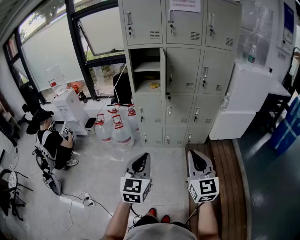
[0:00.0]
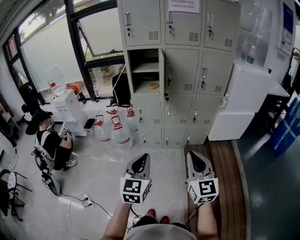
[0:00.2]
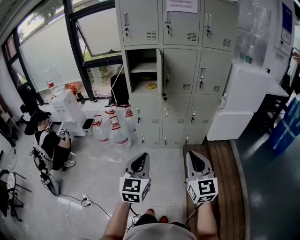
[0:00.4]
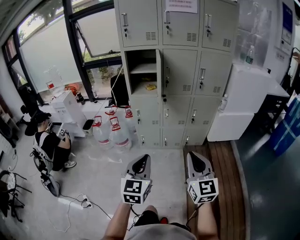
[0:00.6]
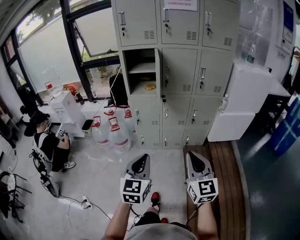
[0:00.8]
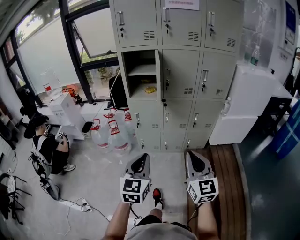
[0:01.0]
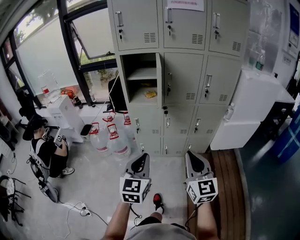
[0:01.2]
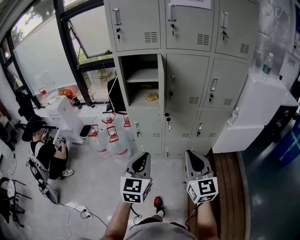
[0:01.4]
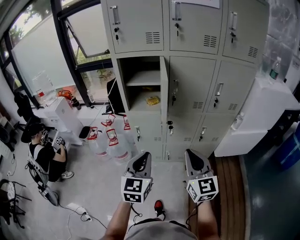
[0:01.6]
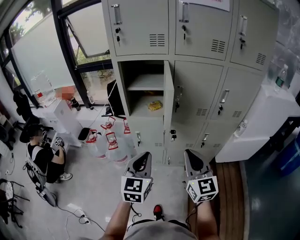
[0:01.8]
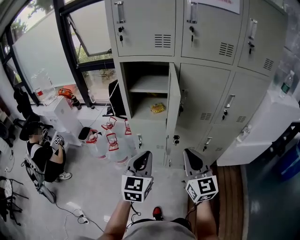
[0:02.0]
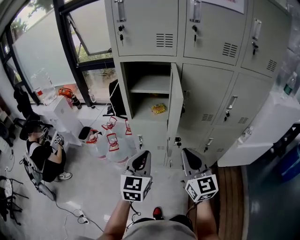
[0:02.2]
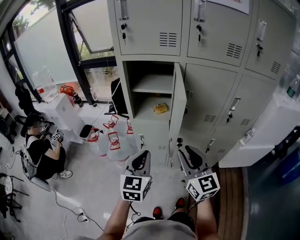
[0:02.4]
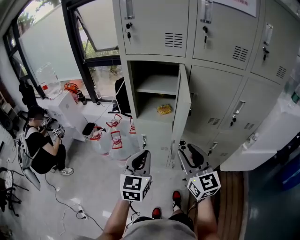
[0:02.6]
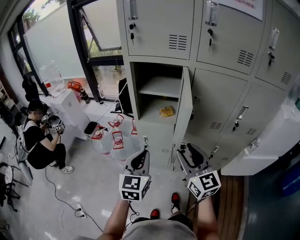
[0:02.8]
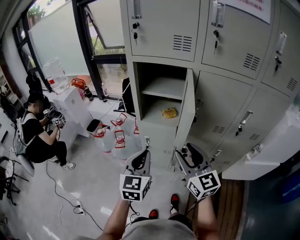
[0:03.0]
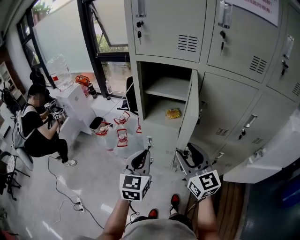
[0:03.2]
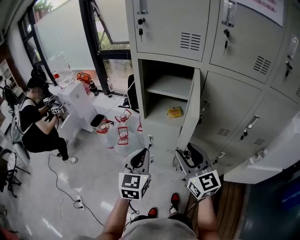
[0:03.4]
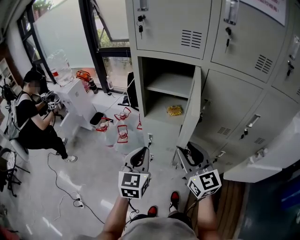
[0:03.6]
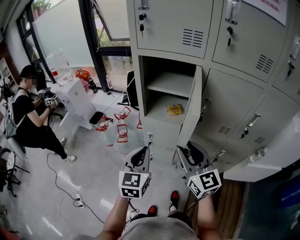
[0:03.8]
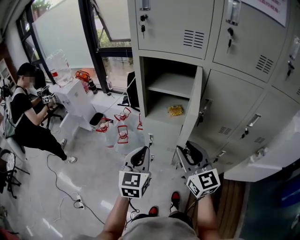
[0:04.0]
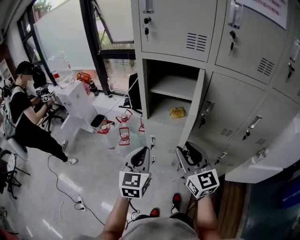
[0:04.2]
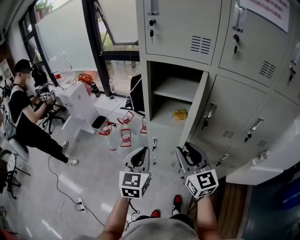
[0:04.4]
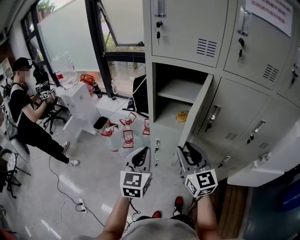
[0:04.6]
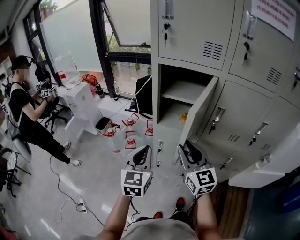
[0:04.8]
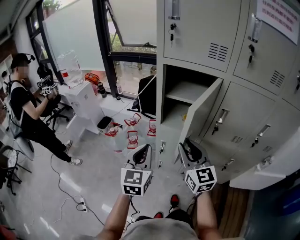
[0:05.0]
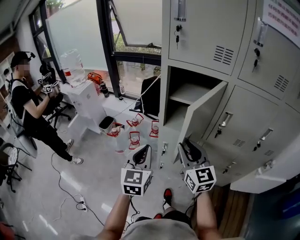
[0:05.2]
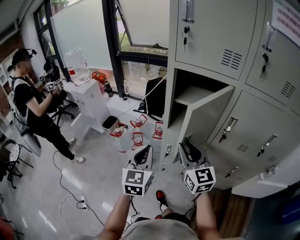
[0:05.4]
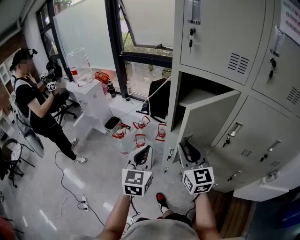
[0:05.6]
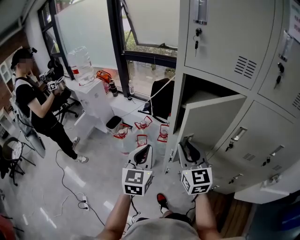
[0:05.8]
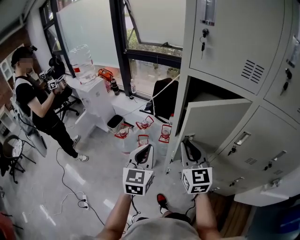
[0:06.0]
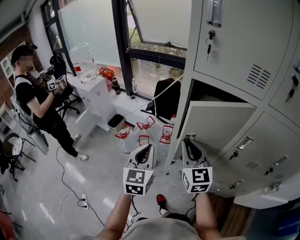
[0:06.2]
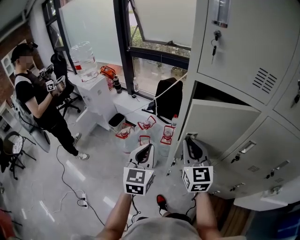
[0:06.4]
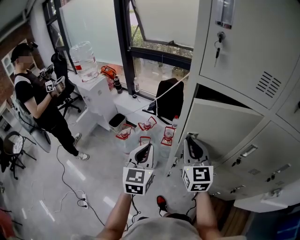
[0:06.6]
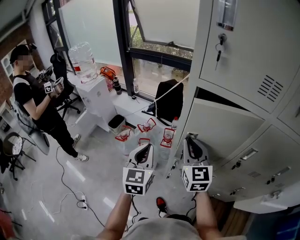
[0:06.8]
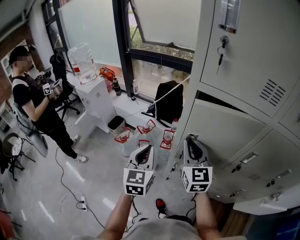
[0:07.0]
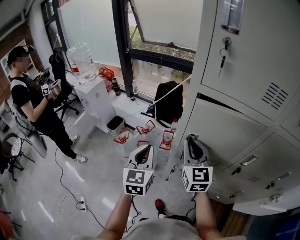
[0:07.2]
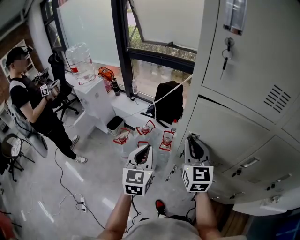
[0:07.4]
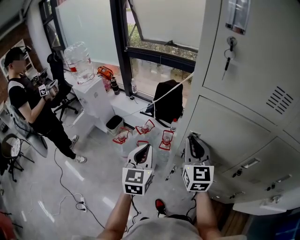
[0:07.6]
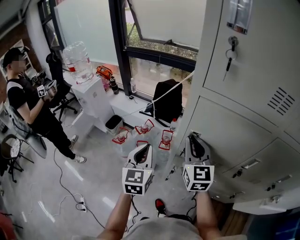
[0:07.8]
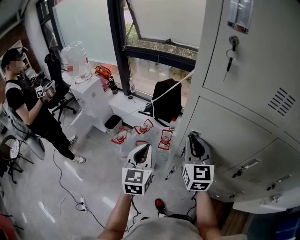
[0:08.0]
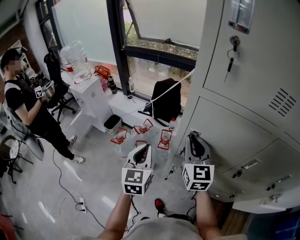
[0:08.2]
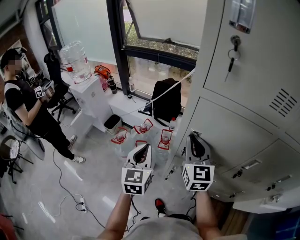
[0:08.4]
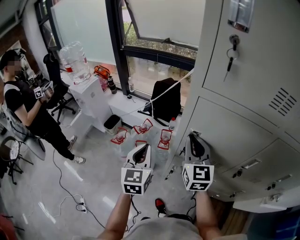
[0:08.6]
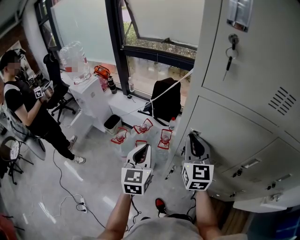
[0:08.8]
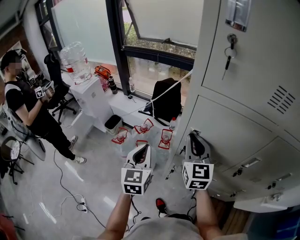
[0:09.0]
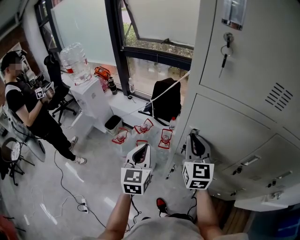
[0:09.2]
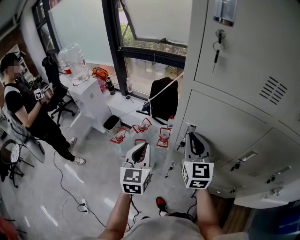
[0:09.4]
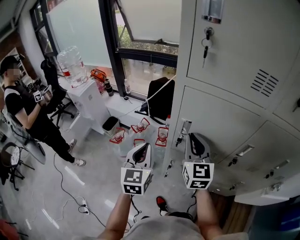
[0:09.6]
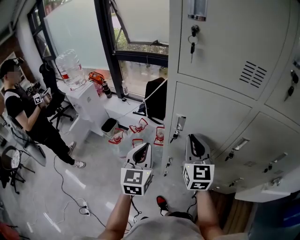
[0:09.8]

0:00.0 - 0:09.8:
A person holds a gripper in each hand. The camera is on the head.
0:00.0 - 0:01.4: Both grippers travel together forward, about 20 cm.
0:01.4 - 0:02.8: Both grippers move forward, roughly 20 cm. The right gripper opens its fingers.
0:02.8 - 0:04.2: The right gripper moves forward, roughly 5 cm.
0:04.2 - 0:05.6: Both grippers move to the left and forward, roughly 15 cm.
0:05.6 - 0:07.0: Both grippers move forward, approximately 15 cm.
0:07.0 - 0:08.4: The left gripper changes place by approximately 5 cm.
0:08.4 - 0:09.8: Both grippers move backward, approximately 5 cm.

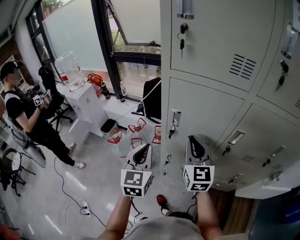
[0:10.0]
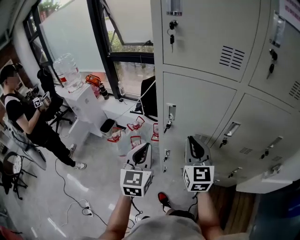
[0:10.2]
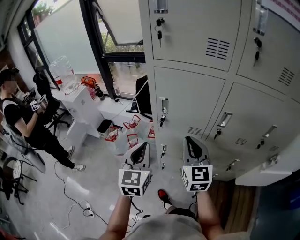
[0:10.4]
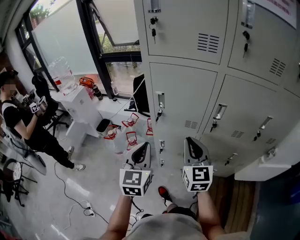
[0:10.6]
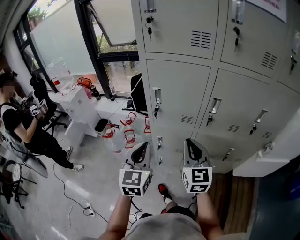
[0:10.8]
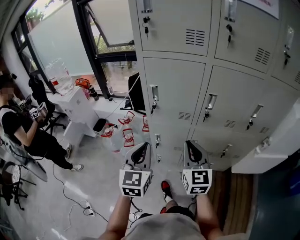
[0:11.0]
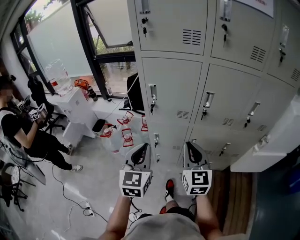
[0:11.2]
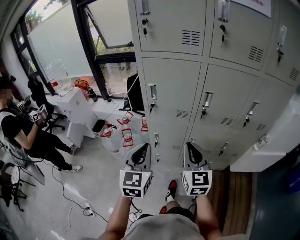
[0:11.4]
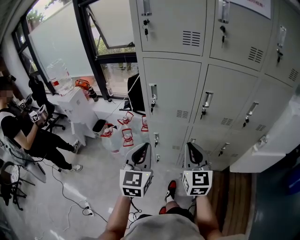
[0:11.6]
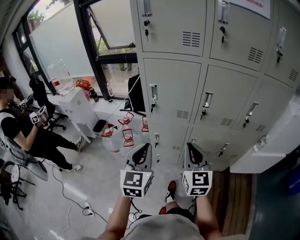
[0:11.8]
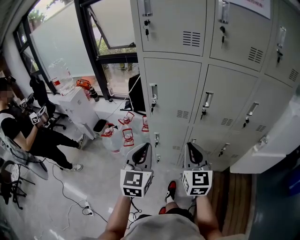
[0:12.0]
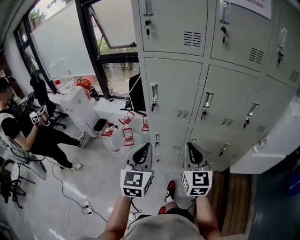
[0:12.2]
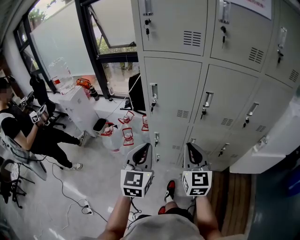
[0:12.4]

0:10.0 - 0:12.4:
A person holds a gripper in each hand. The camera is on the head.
0:10.0 - 0:11.2: The right gripper moves backward, some 20 cm. Meanwhile the left gripper travels backward and to the right by approximately 15 cm.
0:11.2 - 0:12.4: The grippers make only small movements.

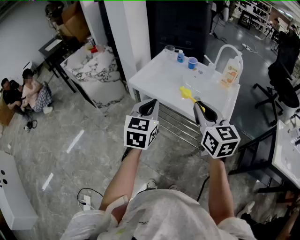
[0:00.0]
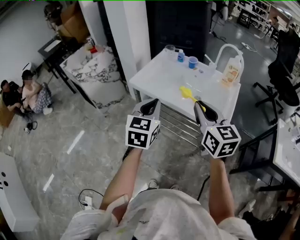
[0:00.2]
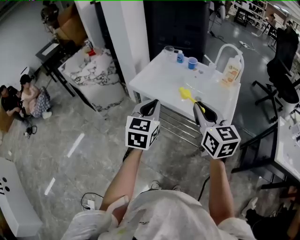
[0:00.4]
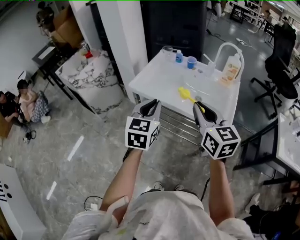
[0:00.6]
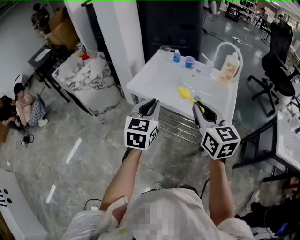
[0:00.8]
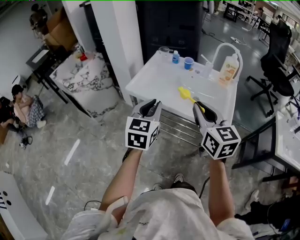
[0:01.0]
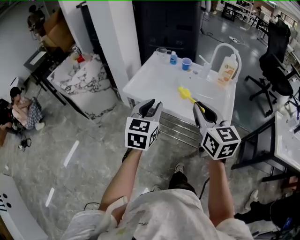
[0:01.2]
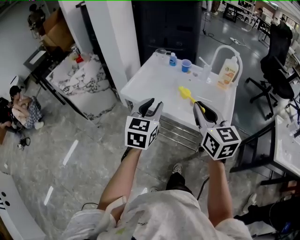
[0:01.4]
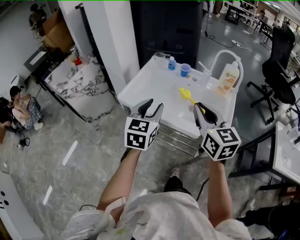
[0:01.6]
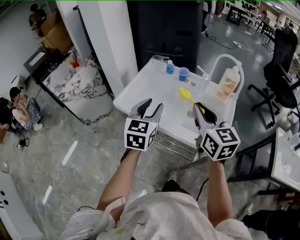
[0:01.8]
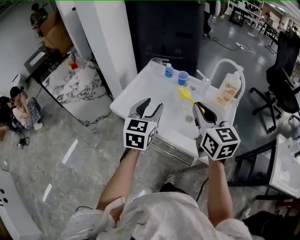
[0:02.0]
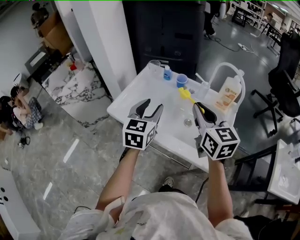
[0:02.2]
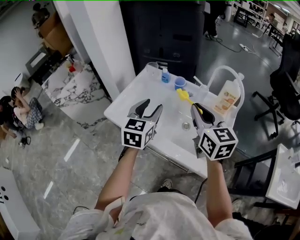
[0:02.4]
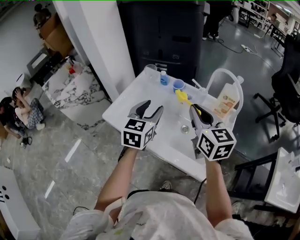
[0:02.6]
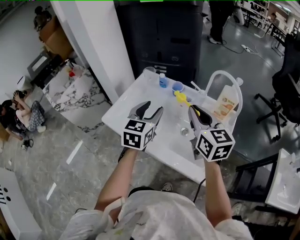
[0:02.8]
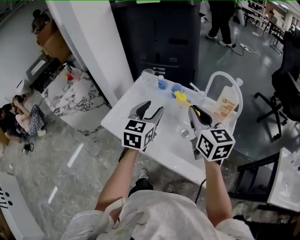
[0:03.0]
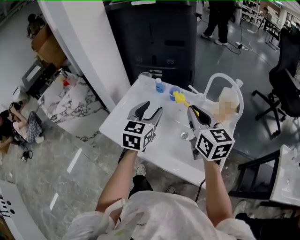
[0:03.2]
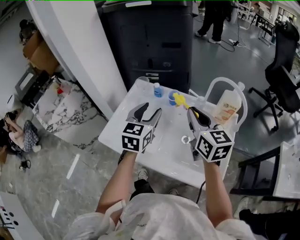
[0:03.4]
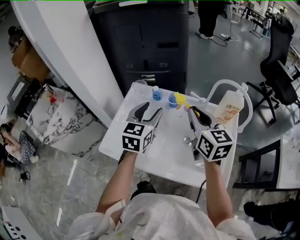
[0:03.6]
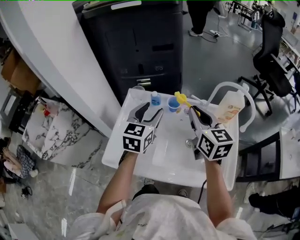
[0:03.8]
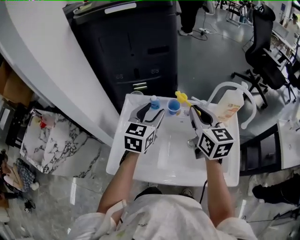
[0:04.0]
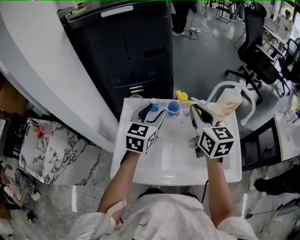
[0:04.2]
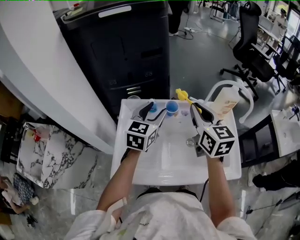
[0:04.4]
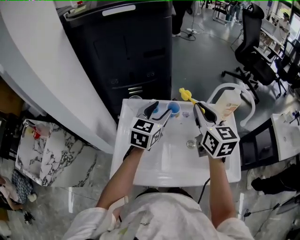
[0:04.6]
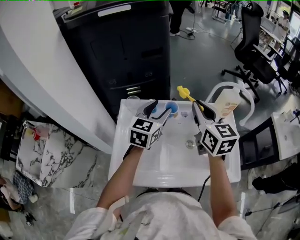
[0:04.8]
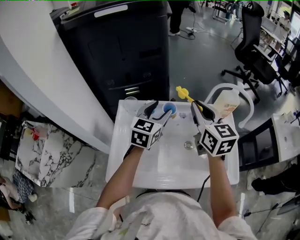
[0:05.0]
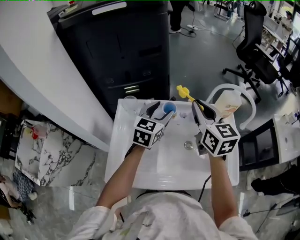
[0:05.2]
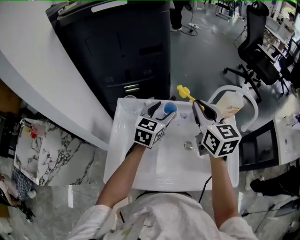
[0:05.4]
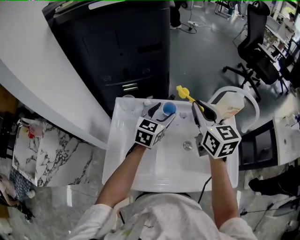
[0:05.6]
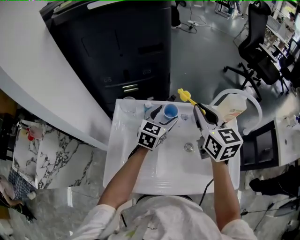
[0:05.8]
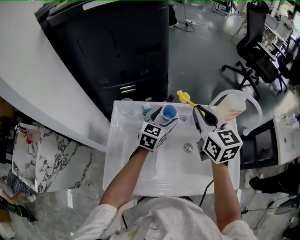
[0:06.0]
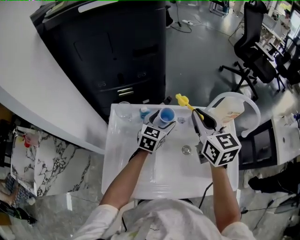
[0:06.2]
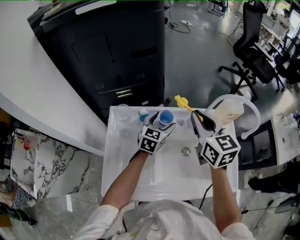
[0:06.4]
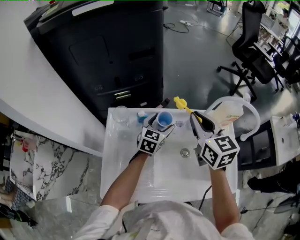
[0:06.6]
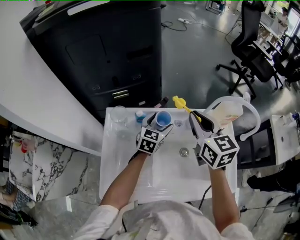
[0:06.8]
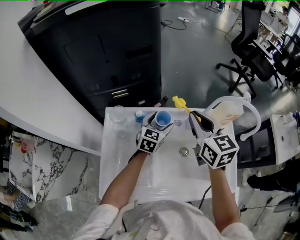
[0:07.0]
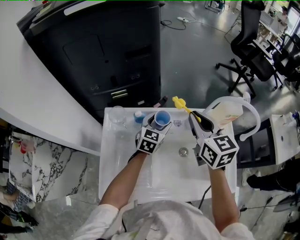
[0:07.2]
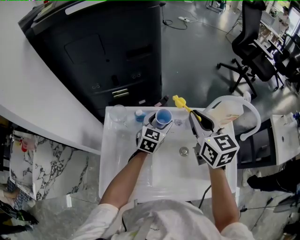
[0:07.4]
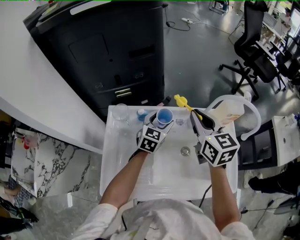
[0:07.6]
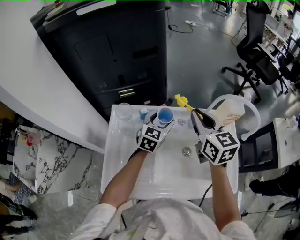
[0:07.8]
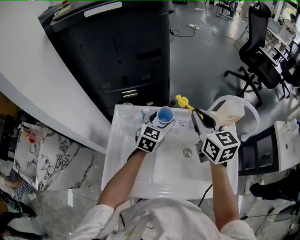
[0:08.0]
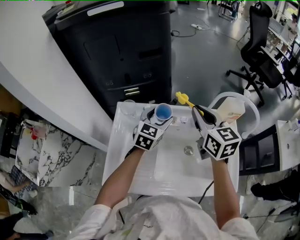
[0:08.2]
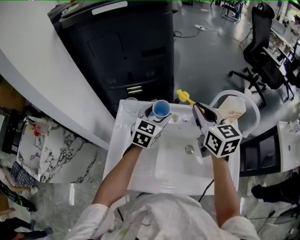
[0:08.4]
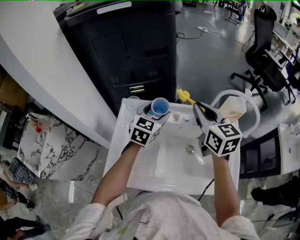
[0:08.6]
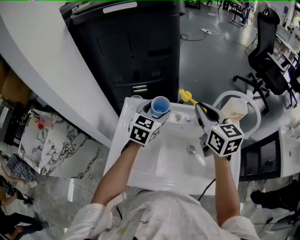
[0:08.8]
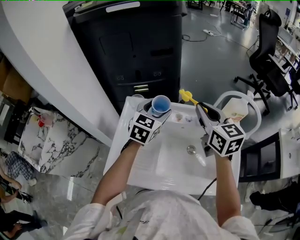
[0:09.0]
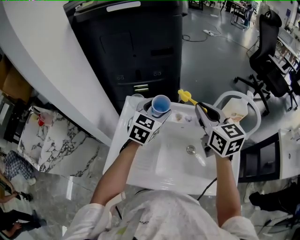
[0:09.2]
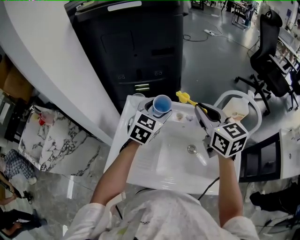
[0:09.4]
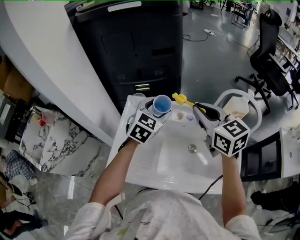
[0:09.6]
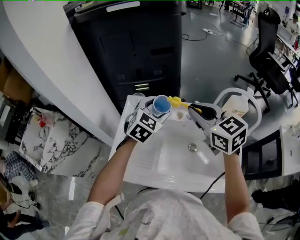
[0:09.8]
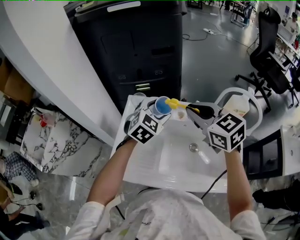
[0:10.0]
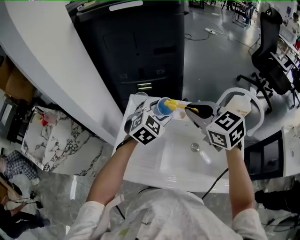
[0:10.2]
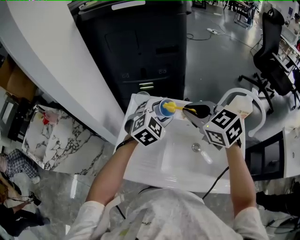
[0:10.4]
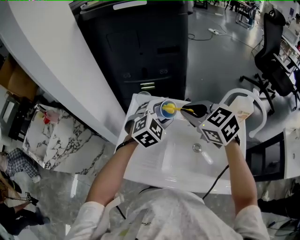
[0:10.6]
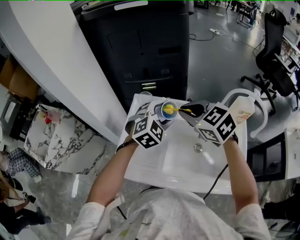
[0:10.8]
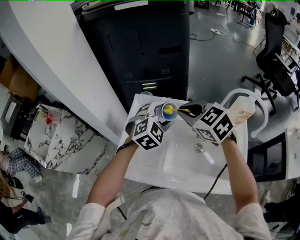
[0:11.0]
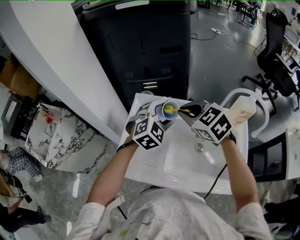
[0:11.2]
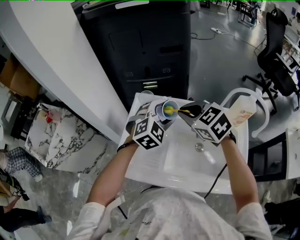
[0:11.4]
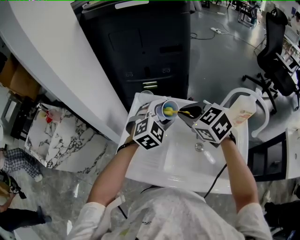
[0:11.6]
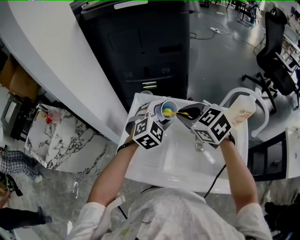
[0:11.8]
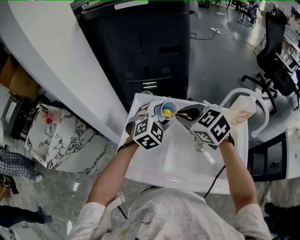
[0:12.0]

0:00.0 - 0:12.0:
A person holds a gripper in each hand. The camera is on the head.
0:00.0 - 0:01.6: Both grippers travel together forward, some 10 cm. The left gripper opens.
0:01.6 - 0:03.0: Both grippers move forward and to the right, approximately 20 cm.
0:03.0 - 0:04.4: The right gripper shifts by roughly 15 cm, and rotates some 30 degrees; the left gripper changes place by approximately 15 cm, and rotates approximately 30 degrees.
0:04.4 - 0:06.0: The left gripper travels downward, forward and to the right by approximately 15 cm, while the right gripper is displaced forward by about 5 cm.
0:07.6 - 0:09.0: The left gripper goes approximately 15 cm upward, to the left and backward. Meanwhile the right gripper ends up about 5 cm from where it was.
0:09.0 - 0:10.4: The left gripper rotates approximately 30 degrees, while the right gripper travels to the left by roughly 10 cm, and rotates some 30 degrees.
0:10.4 - 0:12.0: The right gripper shifts by some 5 cm.
